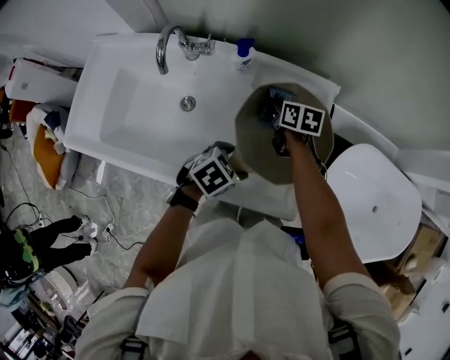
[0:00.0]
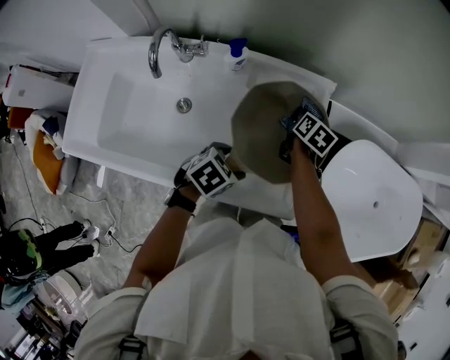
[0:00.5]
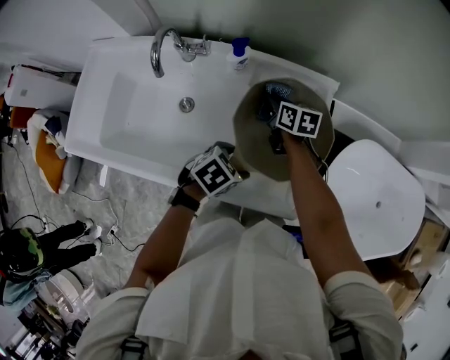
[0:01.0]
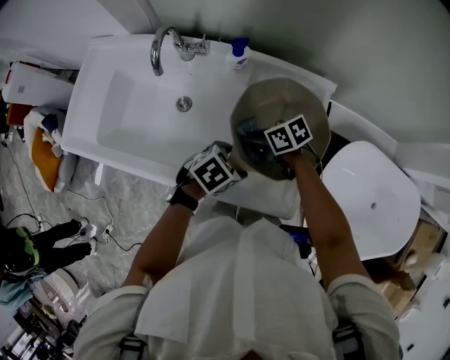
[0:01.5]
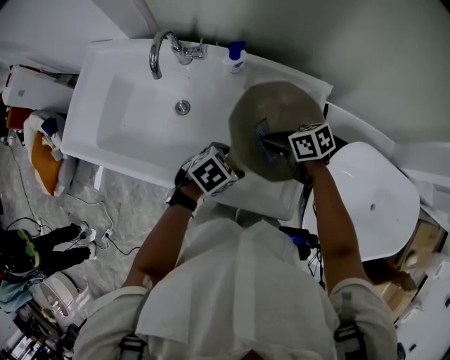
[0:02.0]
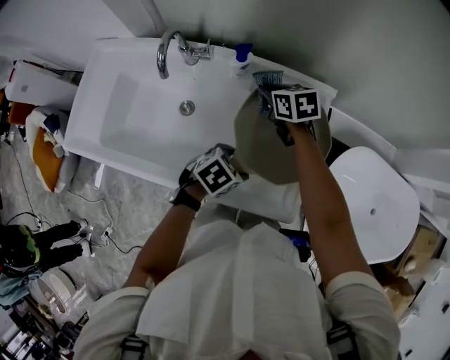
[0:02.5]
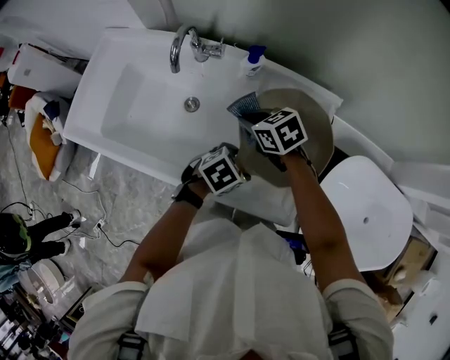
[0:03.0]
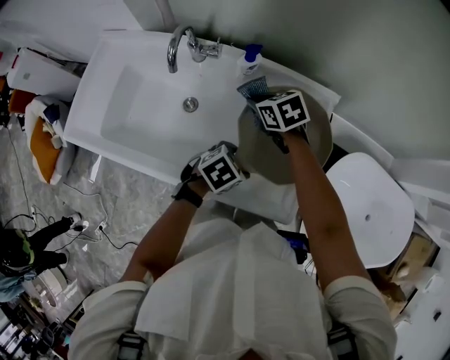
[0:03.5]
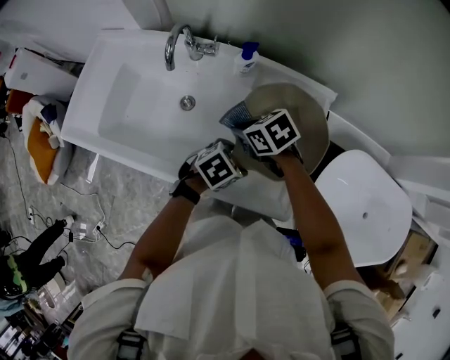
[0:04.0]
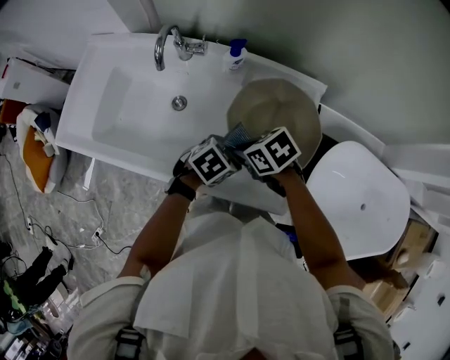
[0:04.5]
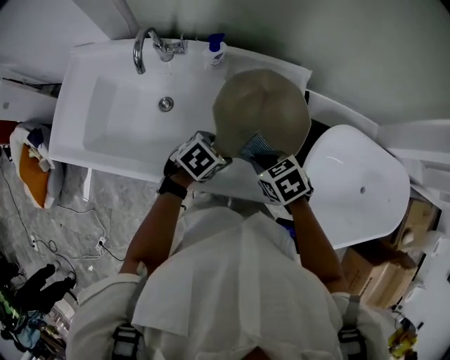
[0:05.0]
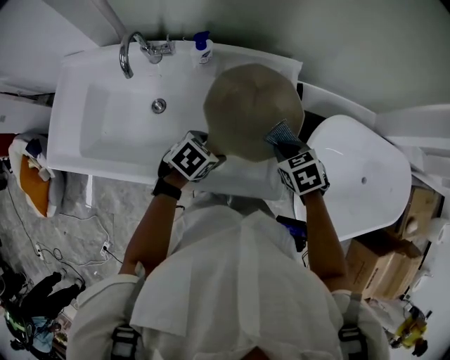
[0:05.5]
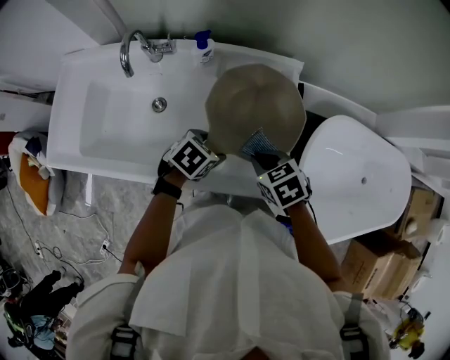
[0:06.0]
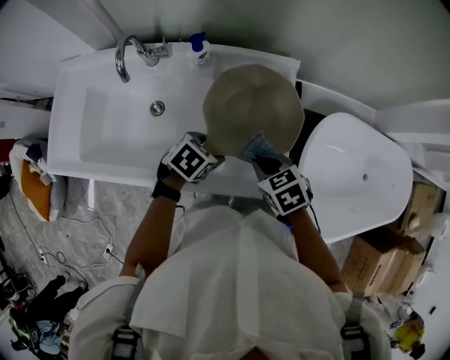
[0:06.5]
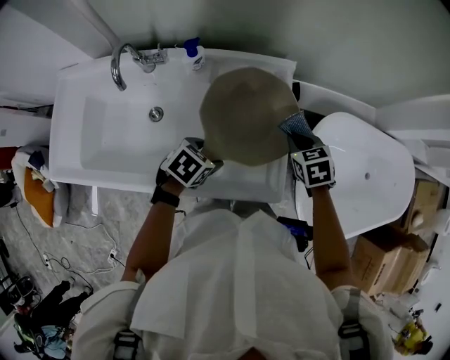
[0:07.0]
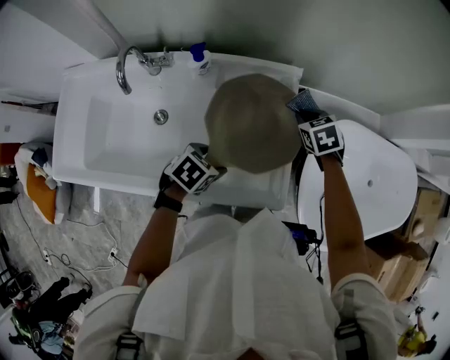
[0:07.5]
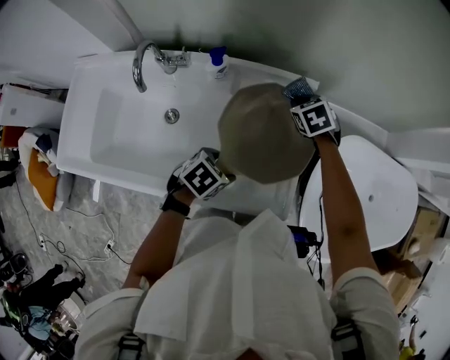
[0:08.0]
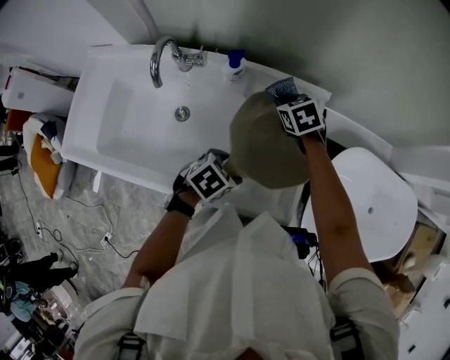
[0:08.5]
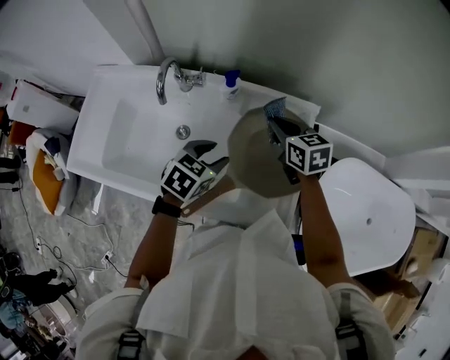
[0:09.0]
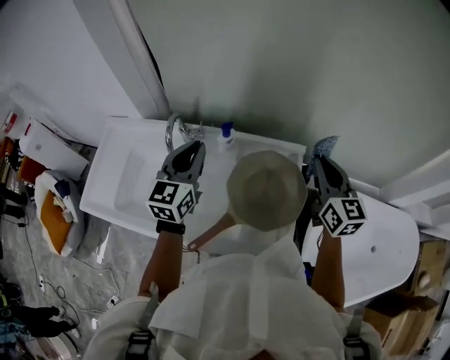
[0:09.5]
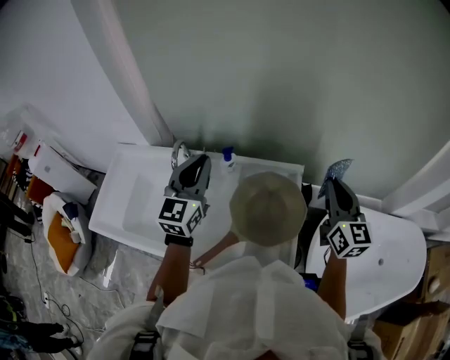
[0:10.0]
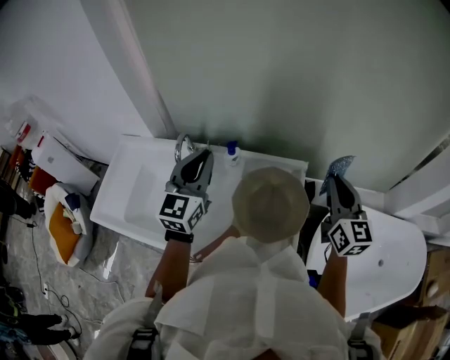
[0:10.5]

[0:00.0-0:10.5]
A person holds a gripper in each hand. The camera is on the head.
0:00.0 to 0:02.0: The right gripper shifts by about 15 cm, and changes its angle by about 40 degrees.
0:02.0 to 0:04.0: The right gripper shifts by roughly 10 cm, and turns by some 20 degrees.
0:04.0 to 0:06.5: The right gripper shifts by about 20 cm, and turns by approximately 20 degrees.
0:06.5 to 0:08.5: The right gripper travels forward and to the left by approximately 25 cm.
0:08.5 to 0:10.5: The right gripper travels upward, to the right and backward by about 35 cm, and points its fingers roughly 60 degrees further upward. Meanwhile the left gripper shifts roughly 35 cm upward, angles its fingers upward, by approximately 60 degrees, and closes up.

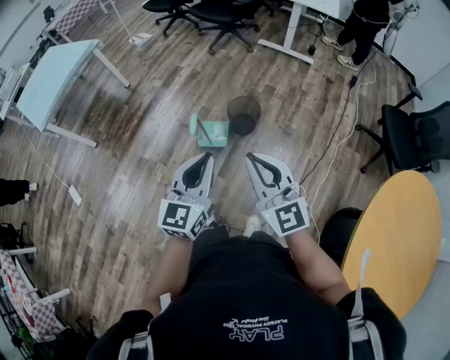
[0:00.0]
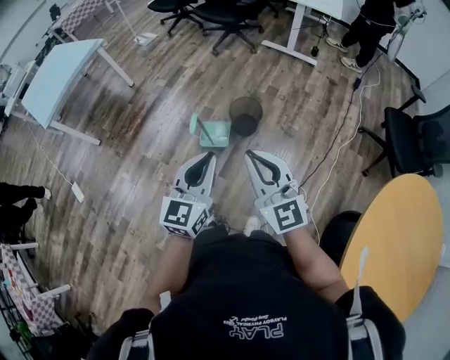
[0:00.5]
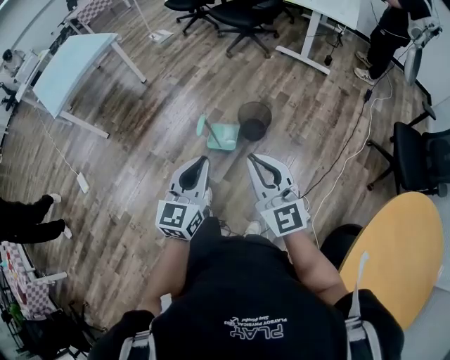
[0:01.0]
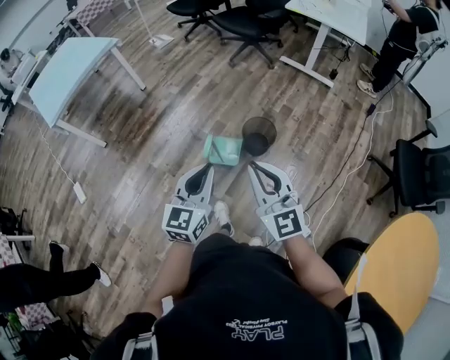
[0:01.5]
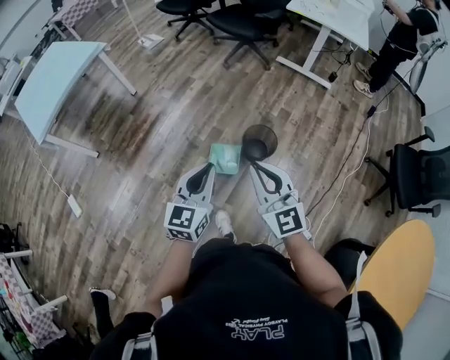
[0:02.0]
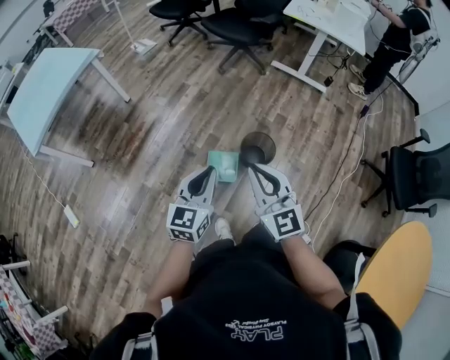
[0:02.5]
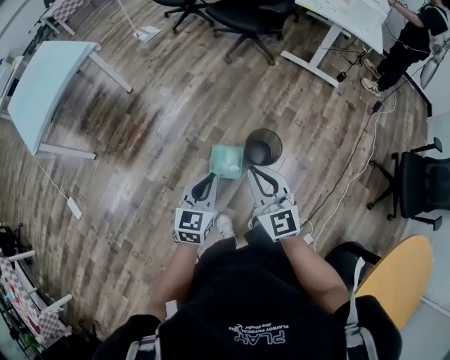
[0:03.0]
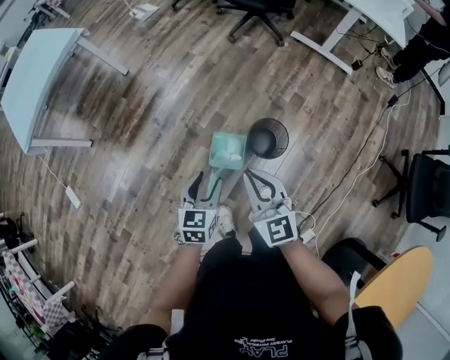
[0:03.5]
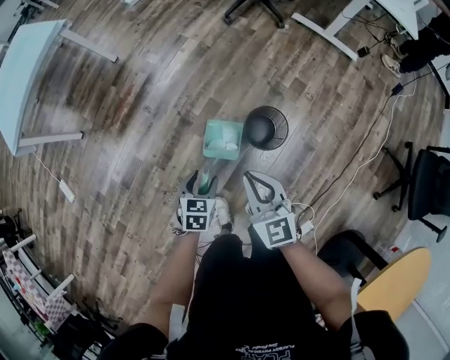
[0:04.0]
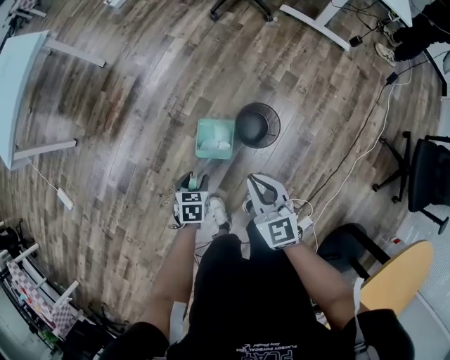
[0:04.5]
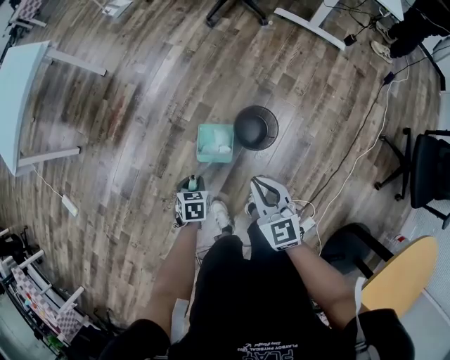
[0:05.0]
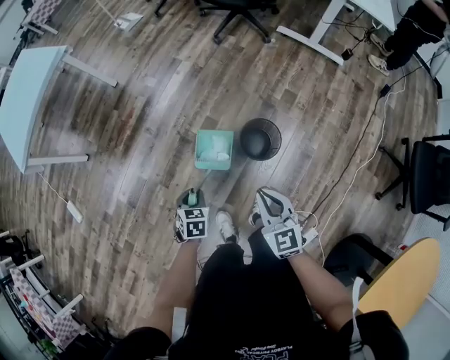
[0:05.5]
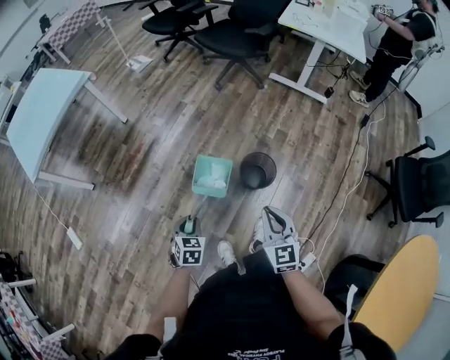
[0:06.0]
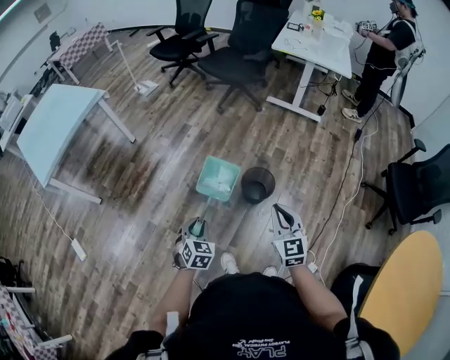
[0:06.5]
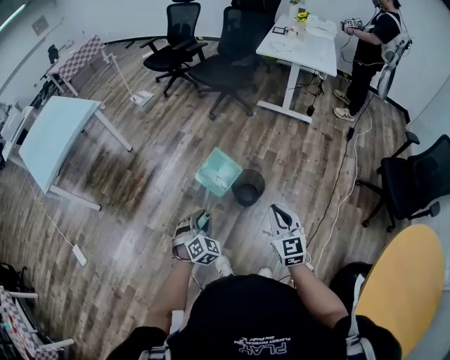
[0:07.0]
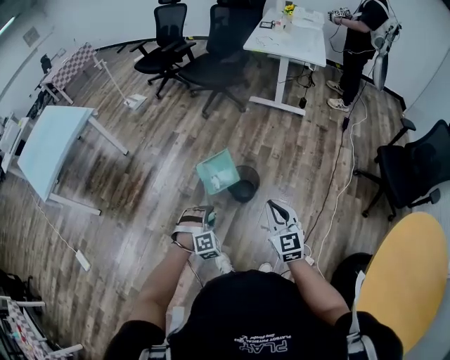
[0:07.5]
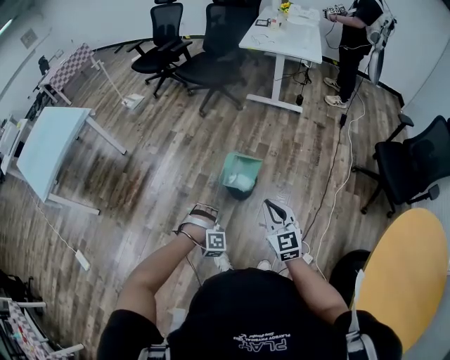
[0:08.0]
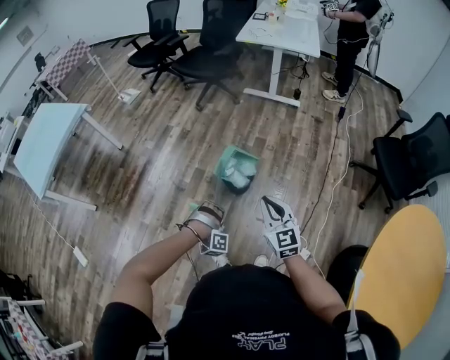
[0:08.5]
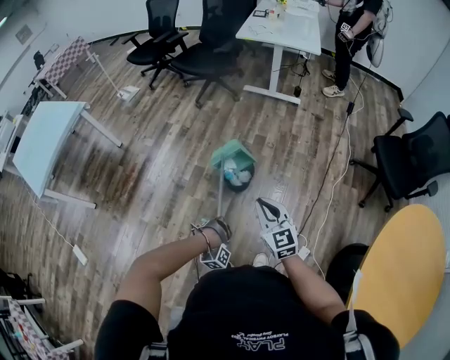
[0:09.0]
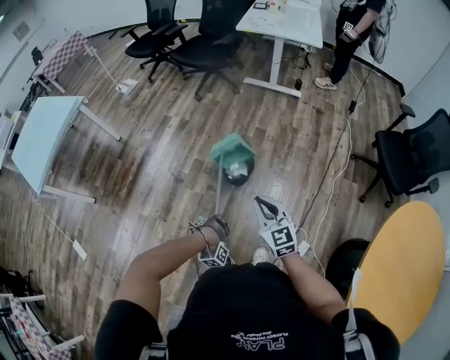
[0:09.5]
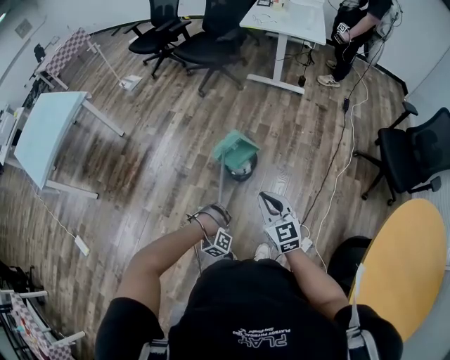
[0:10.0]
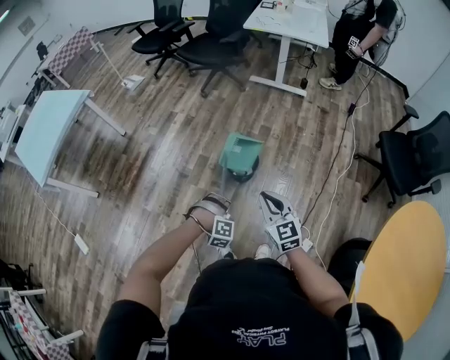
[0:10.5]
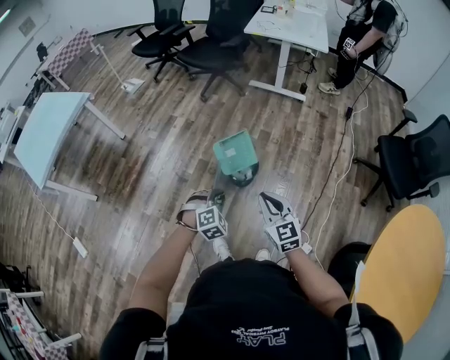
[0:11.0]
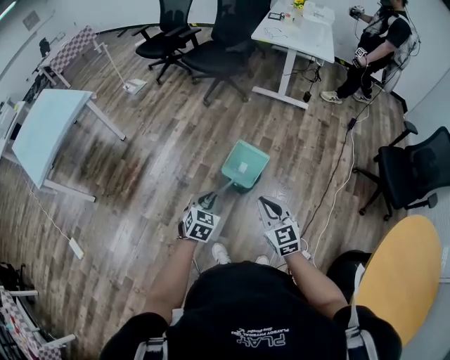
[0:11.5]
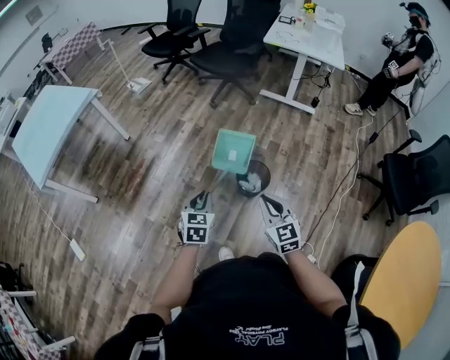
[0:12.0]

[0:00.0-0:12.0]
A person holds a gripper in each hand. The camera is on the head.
0:00.0 to 0:02.0: The grippers both shift forward by about 20 cm.
0:02.0 to 0:04.0: The right gripper goes roughly 25 cm downward and forward, and swivels about 20 degrees; the left gripper heads downward, covering about 30 cm, tips its fingers downward by roughly 40 degrees, and opens its fingers.
0:04.0 to 0:06.0: The left gripper goes some 15 cm to the left, backward and upward, and closes up. Meanwhile the right gripper heads backward and upward, covering about 15 cm.
0:06.0 to 0:08.0: The right gripper shifts approximately 15 cm to the right, backward and upward; the left gripper heads to the right, covering roughly 20 cm, and twists about 100 degrees clockwise, seen from behind.
0:08.0 to 0:10.0: The left gripper is displaced backward and downward by roughly 10 cm, and changes its angle by about 30 degrees.
0:10.0 to 0:12.0: The right gripper moves to the left and forward, roughly 15 cm. Meanwhile the left gripper travels forward, upward and to the left by roughly 30 cm, and twists roughly 120 degrees counterclockwise, seen from behind.

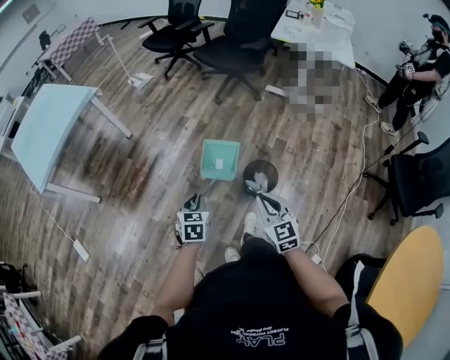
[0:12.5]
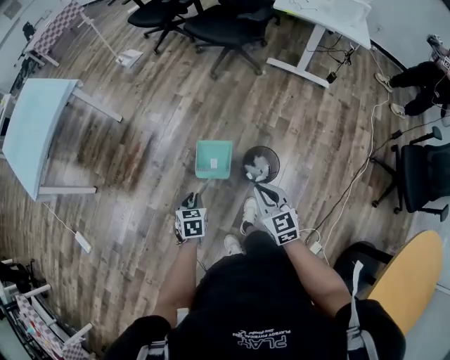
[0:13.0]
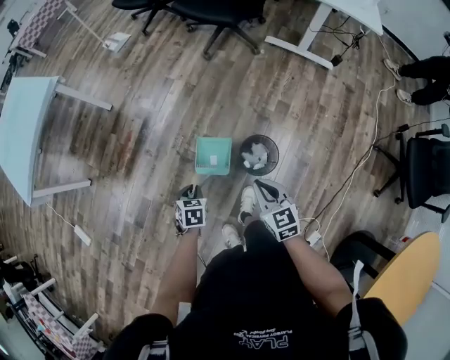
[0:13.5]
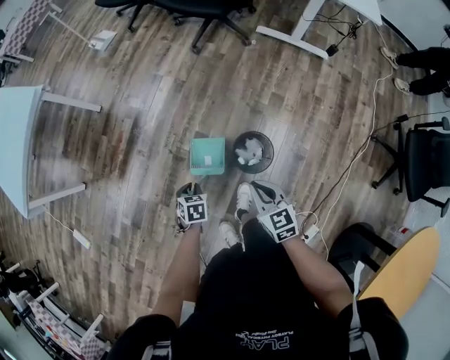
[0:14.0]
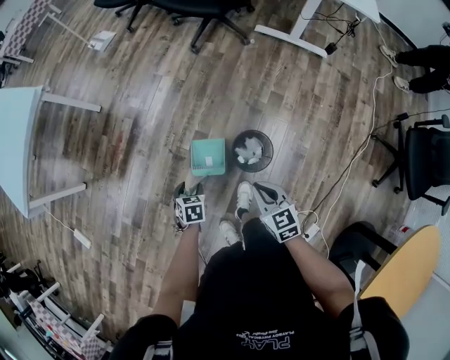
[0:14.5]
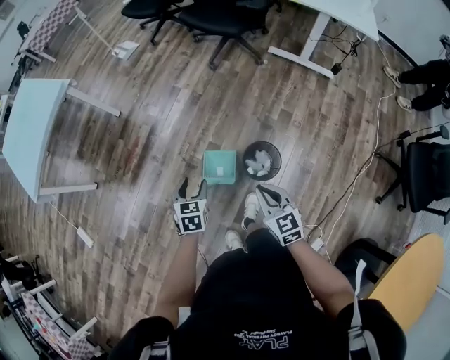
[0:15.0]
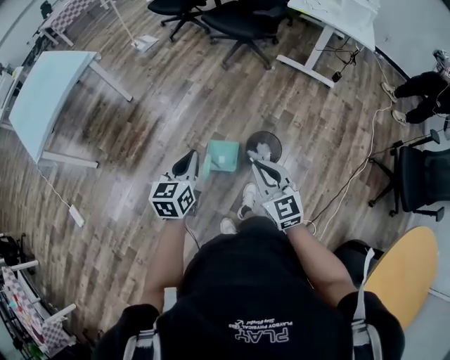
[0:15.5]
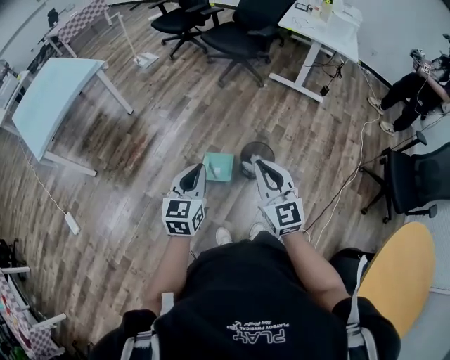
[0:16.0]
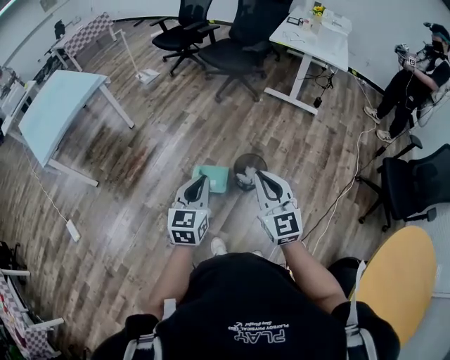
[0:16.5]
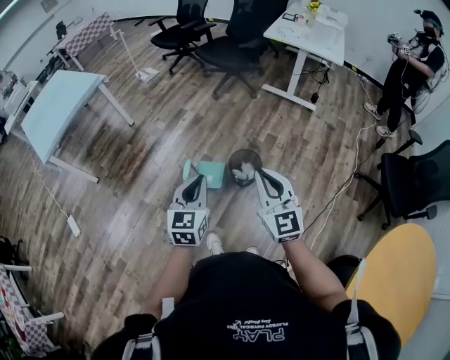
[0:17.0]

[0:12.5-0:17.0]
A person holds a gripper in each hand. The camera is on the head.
0:12.5 to 0:14.5: The right gripper is displaced downward, forward and to the right by approximately 20 cm, and swivels some 20 degrees. The left gripper is displaced downward and forward by approximately 25 cm, changes its angle by roughly 20 degrees, and opens.
0:14.5 to 0:17.0: The two grippers go about 40 cm upward and backward. The left gripper points its fingers about 50 degrees further upward, and closes; the right gripper angles its fingers upward, by roughly 30 degrees.
